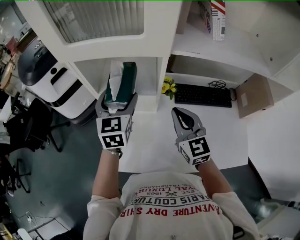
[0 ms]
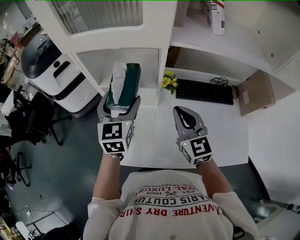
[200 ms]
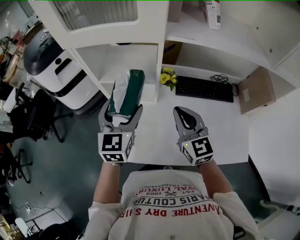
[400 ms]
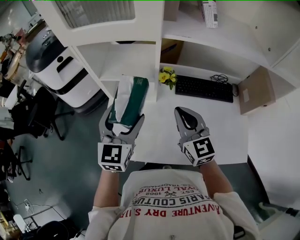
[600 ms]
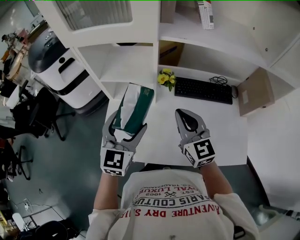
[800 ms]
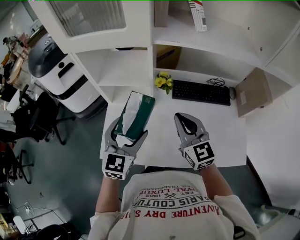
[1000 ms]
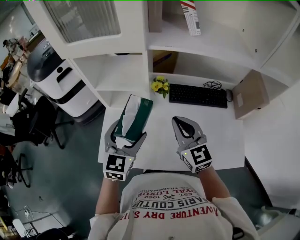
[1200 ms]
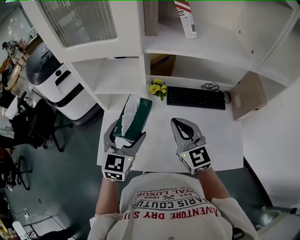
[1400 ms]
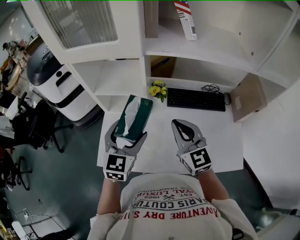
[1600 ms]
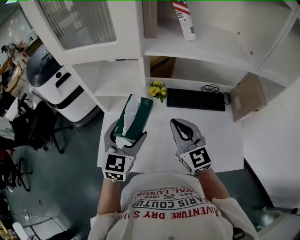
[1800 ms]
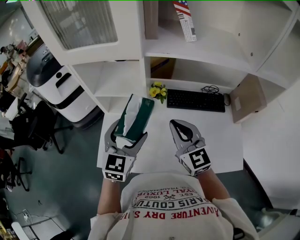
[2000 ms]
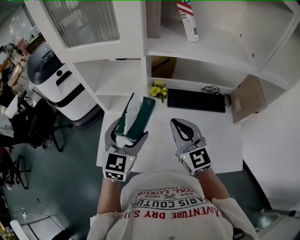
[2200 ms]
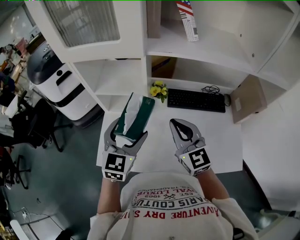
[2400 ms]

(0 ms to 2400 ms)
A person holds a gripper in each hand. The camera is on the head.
0 ms - 1200 ms: The right gripper moves backward, about 10 cm. The left gripper travels backward and to the right by approximately 20 cm.
1200 ms - 2400 ms: The grippers make only small movements.

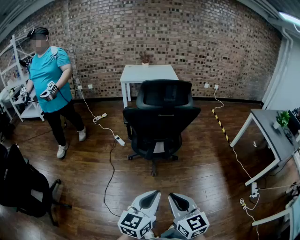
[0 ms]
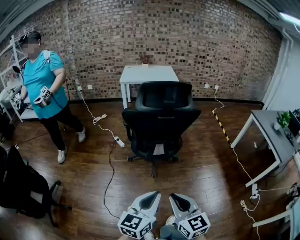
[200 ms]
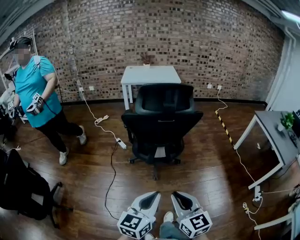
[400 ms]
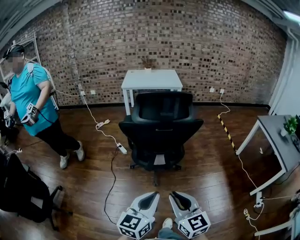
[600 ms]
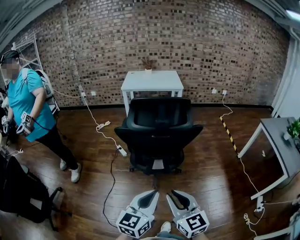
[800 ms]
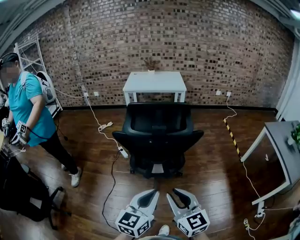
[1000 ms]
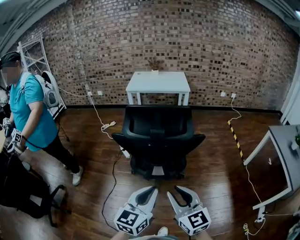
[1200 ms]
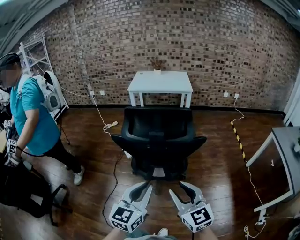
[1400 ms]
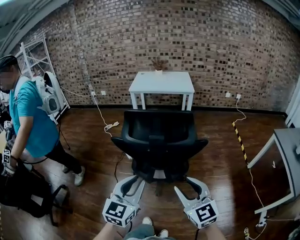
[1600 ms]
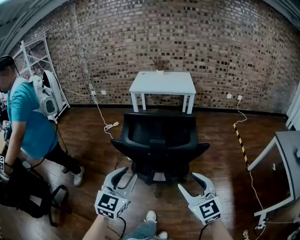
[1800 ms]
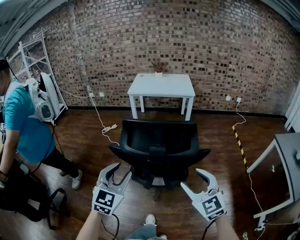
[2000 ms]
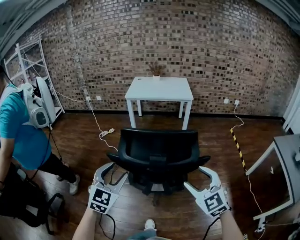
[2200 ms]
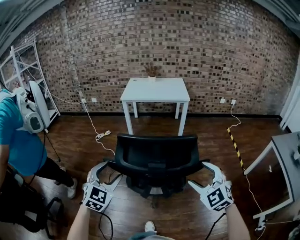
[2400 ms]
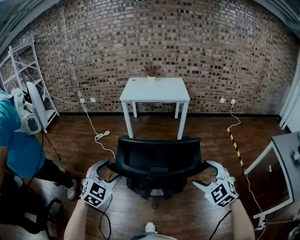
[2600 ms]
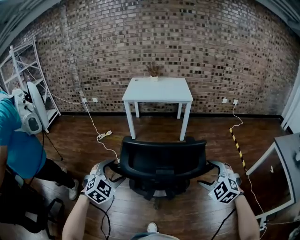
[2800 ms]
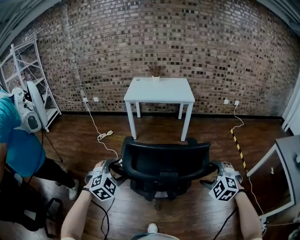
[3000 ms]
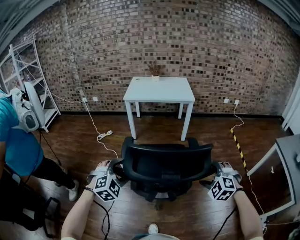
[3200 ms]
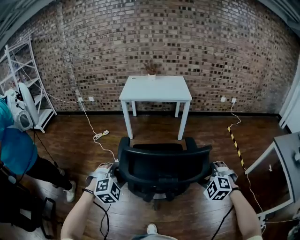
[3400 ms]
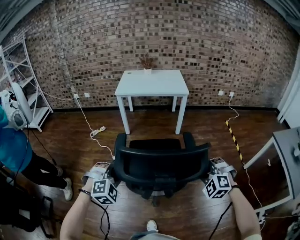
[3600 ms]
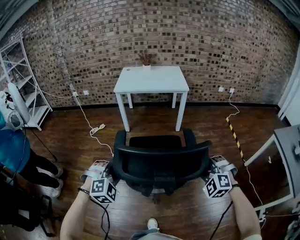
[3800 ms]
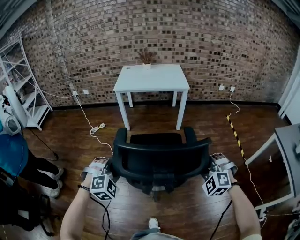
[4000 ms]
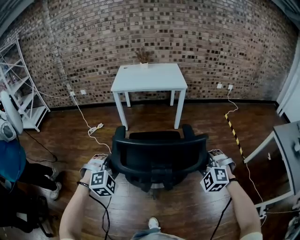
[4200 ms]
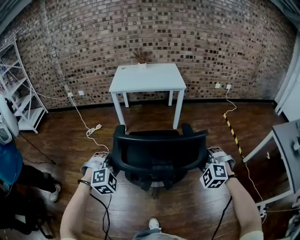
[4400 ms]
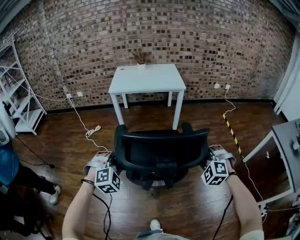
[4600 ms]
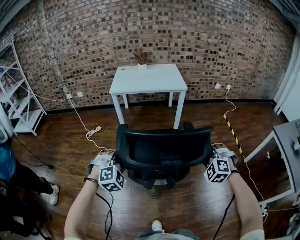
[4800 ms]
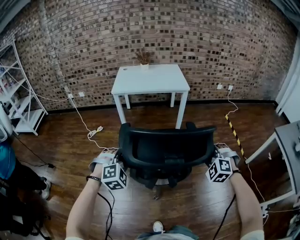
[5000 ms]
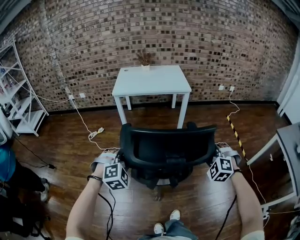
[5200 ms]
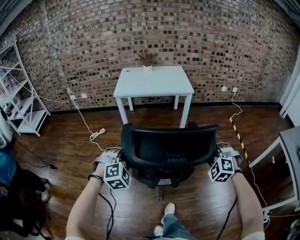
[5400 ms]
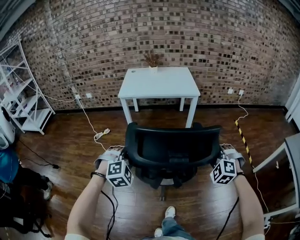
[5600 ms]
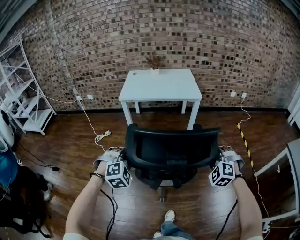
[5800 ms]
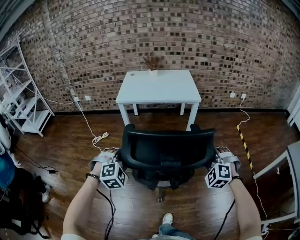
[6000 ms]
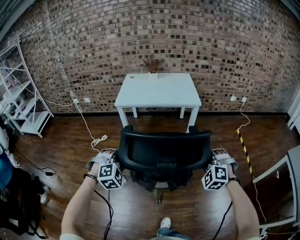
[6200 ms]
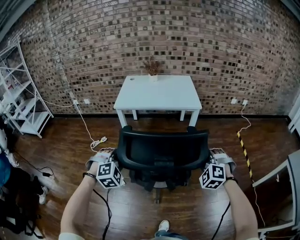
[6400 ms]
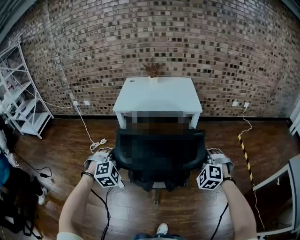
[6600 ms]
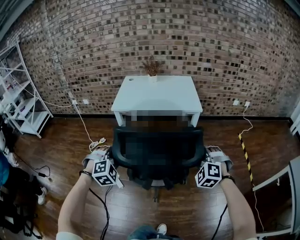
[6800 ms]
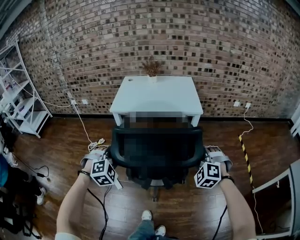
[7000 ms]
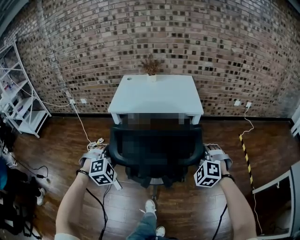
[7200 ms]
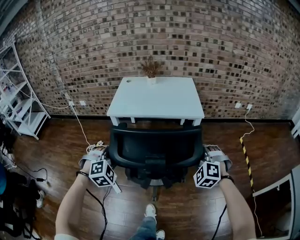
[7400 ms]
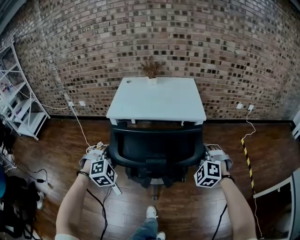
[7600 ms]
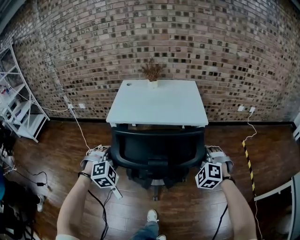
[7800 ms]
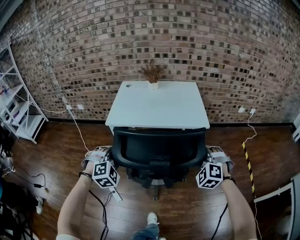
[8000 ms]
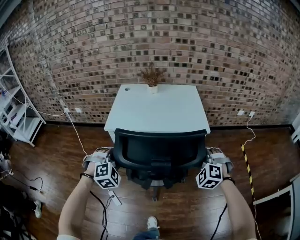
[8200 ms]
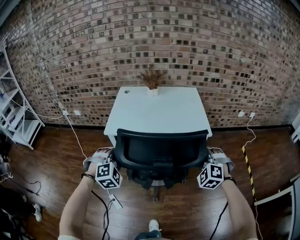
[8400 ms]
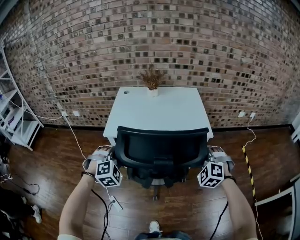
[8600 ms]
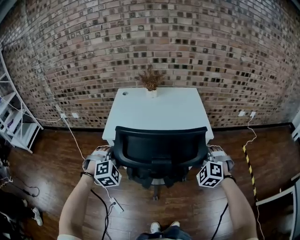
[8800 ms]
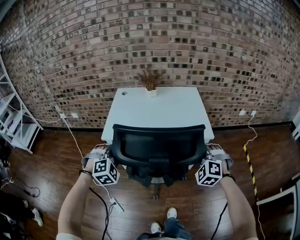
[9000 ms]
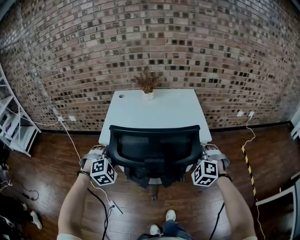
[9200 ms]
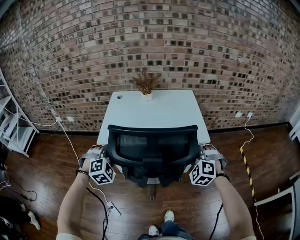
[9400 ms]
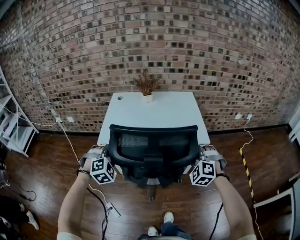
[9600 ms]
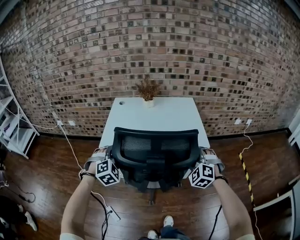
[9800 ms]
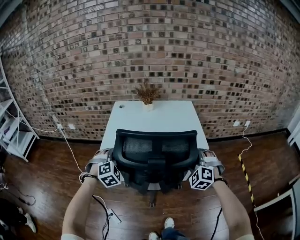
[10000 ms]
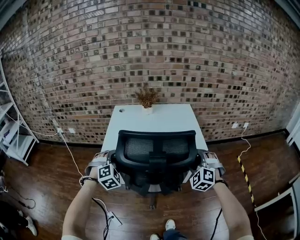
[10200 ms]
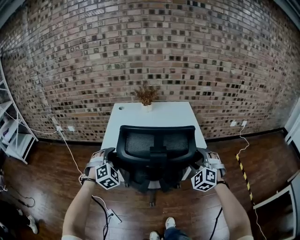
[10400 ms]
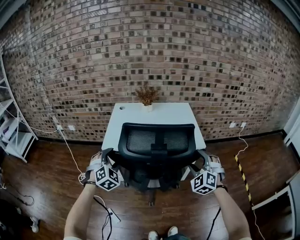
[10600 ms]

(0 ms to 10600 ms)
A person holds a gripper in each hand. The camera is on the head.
0 ms - 1600 ms: The left gripper travels forward by about 25 cm, and rotates about 20 degrees. The right gripper heads forward and to the right, covering roughly 30 cm, and opens up.
1600 ms - 3000 ms: The right gripper travels forward, to the right and downward by roughly 25 cm, angles its fingers downward, by some 30 degrees, and opens its fingers; the left gripper moves forward and to the left, approximately 25 cm, rotates around the line of its fingers by approximately 40 degrees, clockwise from behind, and opens.
3000 ms - 4600 ms: The grippers both shift forward by some 10 cm. The left gripper closes; the right gripper closes up.
4600 ms - 6000 ms: Both grippers move forward, about 15 cm.
6000 ms - 7600 ms: The grippers both shift forward by approximately 25 cm.
7600 ms - 9000 ms: Both grippers travel together forward, approximately 20 cm.
9000 ms - 10600 ms: The right gripper ends up roughly 5 cm from where it was, and opens. The left gripper swivels about 20 degrees.

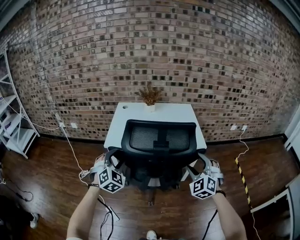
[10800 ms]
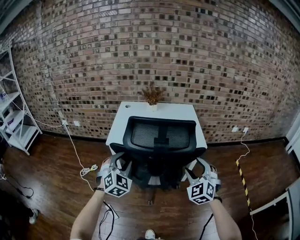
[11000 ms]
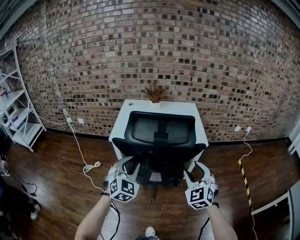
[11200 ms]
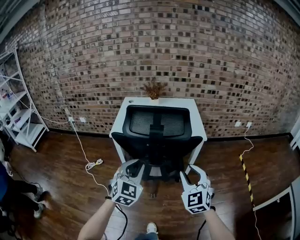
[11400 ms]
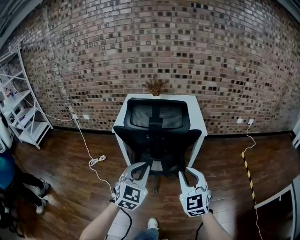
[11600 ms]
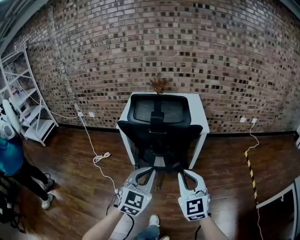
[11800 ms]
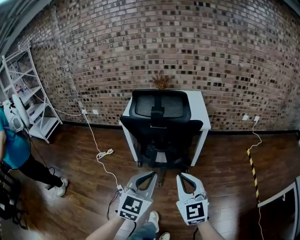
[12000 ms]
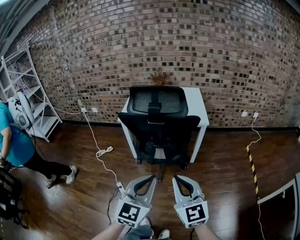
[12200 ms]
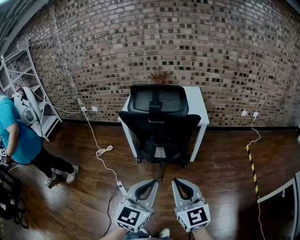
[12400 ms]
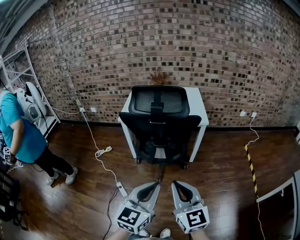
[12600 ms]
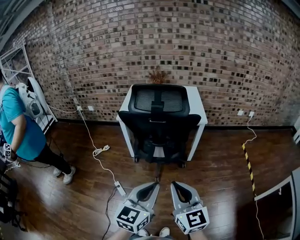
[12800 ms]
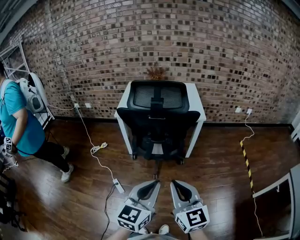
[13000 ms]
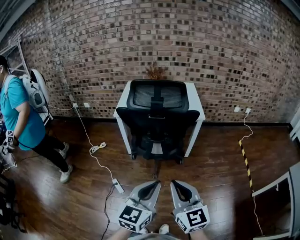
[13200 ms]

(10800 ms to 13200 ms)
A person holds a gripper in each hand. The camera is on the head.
10800 ms - 12000 ms: The left gripper is displaced backward and to the right by about 35 cm, turns by approximately 40 degrees, and closes its fingers. Meanwhile the right gripper travels backward by about 30 cm, turns by some 40 degrees, and closes its fingers.
12000 ms - 13200 ms: Both grippers move backward, approximately 5 cm. The left gripper swivels about 20 degrees.

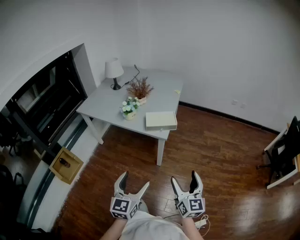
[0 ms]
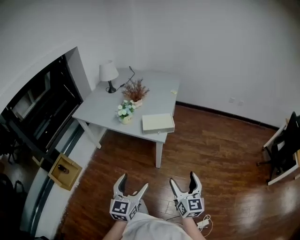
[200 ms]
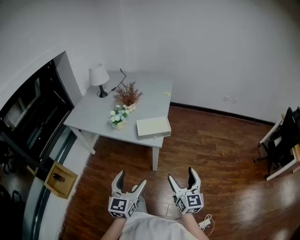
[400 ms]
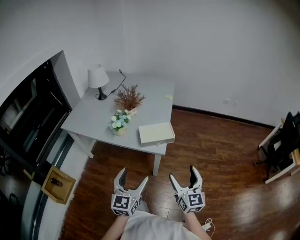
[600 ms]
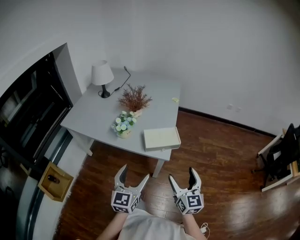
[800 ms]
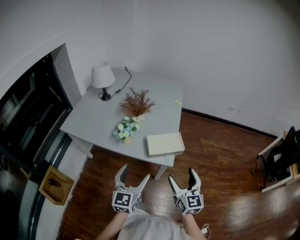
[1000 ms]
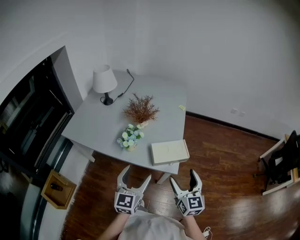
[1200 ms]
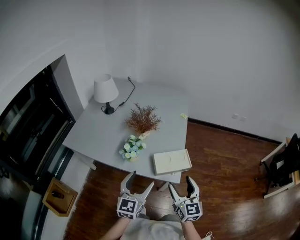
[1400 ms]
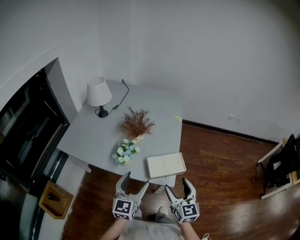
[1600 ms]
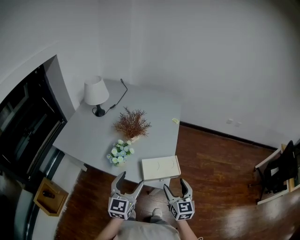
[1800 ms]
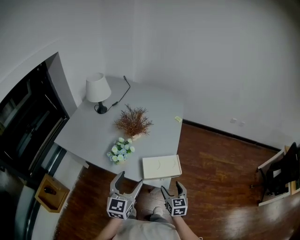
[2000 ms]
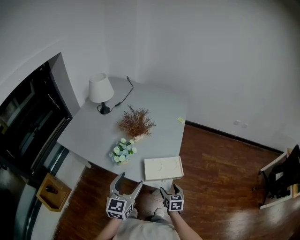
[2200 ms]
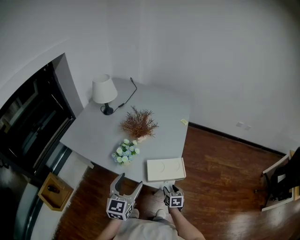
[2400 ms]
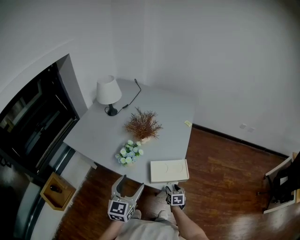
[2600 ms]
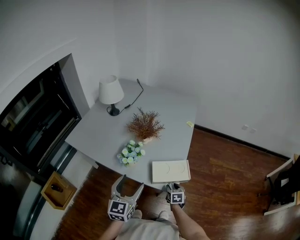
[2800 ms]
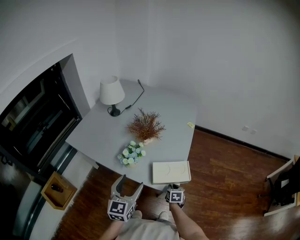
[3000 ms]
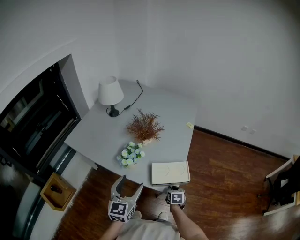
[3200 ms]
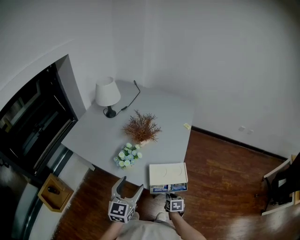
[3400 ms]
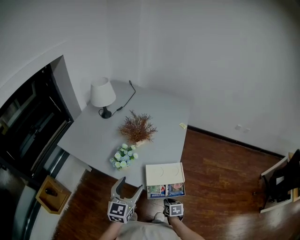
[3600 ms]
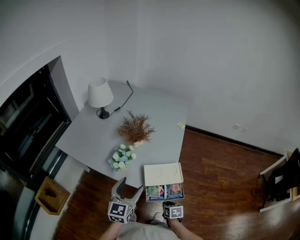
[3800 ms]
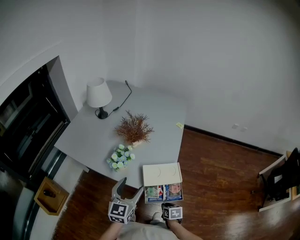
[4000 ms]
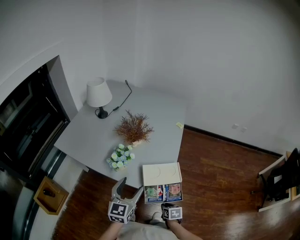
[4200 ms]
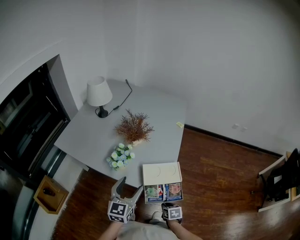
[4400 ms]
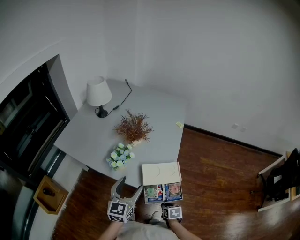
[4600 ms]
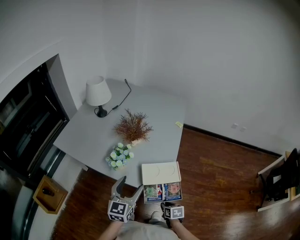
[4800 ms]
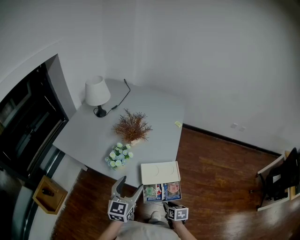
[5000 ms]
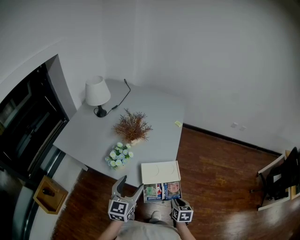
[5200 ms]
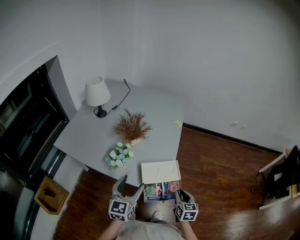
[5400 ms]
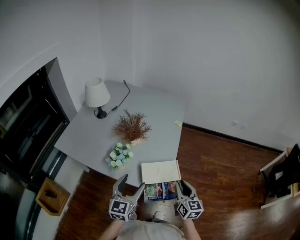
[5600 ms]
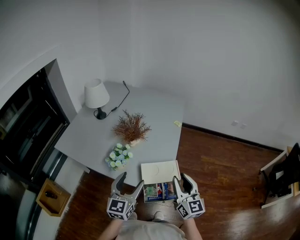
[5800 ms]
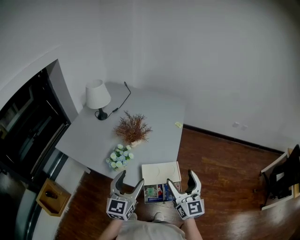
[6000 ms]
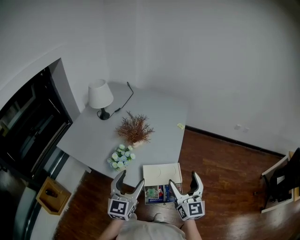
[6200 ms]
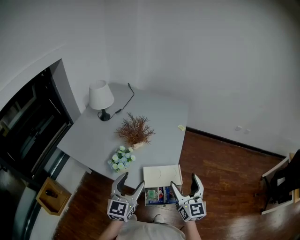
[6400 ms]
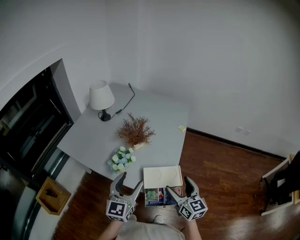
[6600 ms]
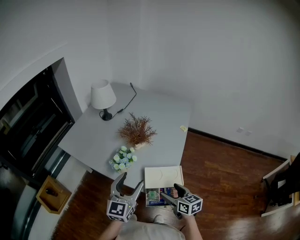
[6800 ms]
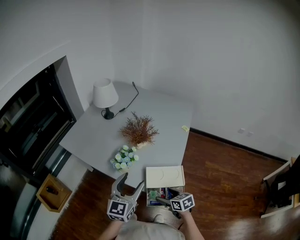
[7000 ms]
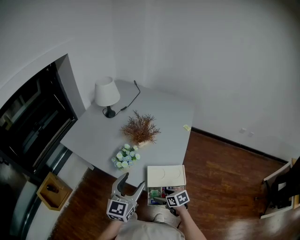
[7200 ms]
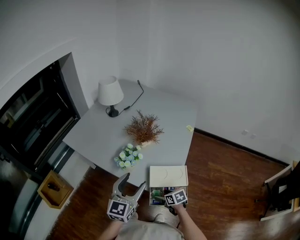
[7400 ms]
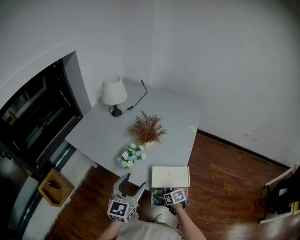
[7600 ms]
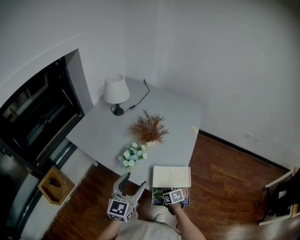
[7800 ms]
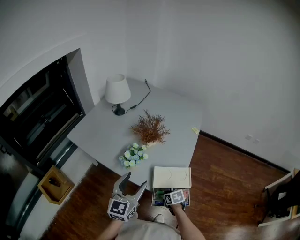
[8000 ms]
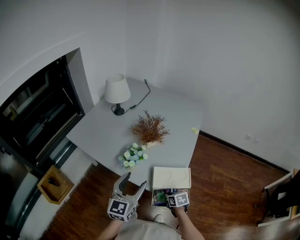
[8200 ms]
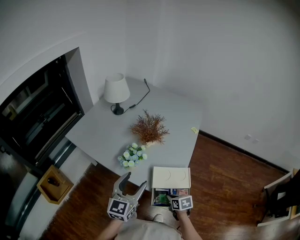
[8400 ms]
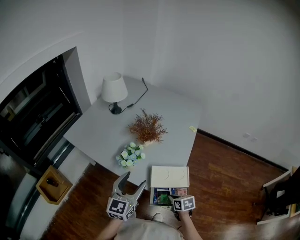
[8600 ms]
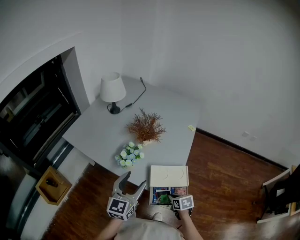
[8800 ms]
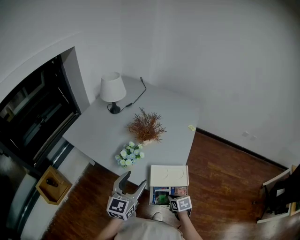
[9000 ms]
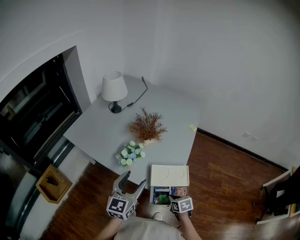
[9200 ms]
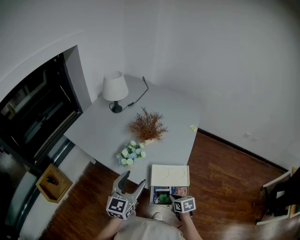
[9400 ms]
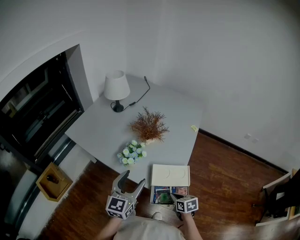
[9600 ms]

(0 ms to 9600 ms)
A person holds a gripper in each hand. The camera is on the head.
0 ms - 1600 ms: The right gripper is displaced forward and to the left by some 35 cm. The left gripper goes some 35 cm forward.
1600 ms - 3200 ms: The right gripper goes about 30 cm downward, angles its fingers downward, by roughly 40 degrees, and closes up.
3200 ms - 4800 ms: The right gripper is displaced backward by approximately 10 cm; the left gripper shifts by approximately 5 cm.
4800 ms - 6400 ms: The right gripper heads upward, covering some 35 cm, tips its fingers upward by some 60 degrees, and opens its fingers. Meanwhile the left gripper is displaced upward by about 5 cm.
6400 ms - 8000 ms: The right gripper moves downward, about 35 cm, tips its fingers downward by some 60 degrees, and closes.
8000 ms - 9600 ms: The right gripper is displaced upward by approximately 5 cm, and closes up.
